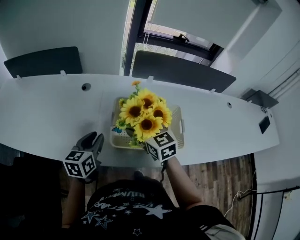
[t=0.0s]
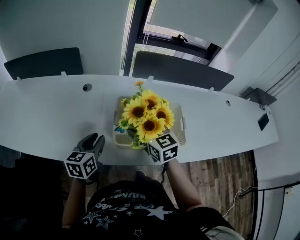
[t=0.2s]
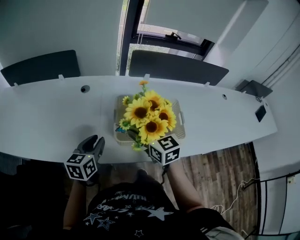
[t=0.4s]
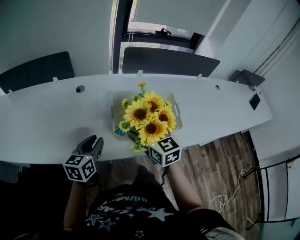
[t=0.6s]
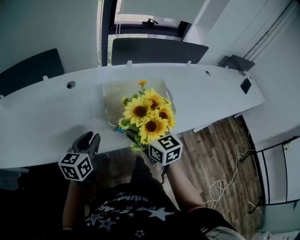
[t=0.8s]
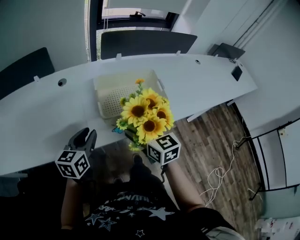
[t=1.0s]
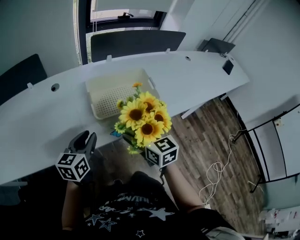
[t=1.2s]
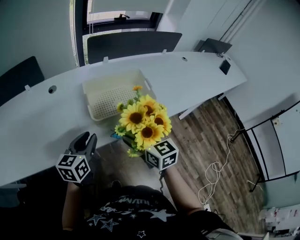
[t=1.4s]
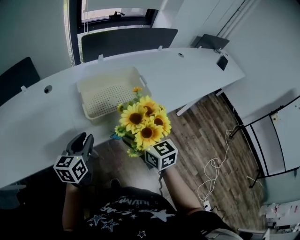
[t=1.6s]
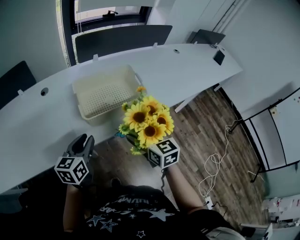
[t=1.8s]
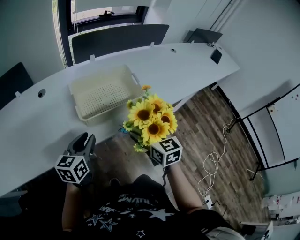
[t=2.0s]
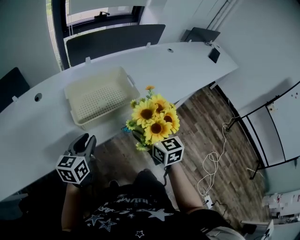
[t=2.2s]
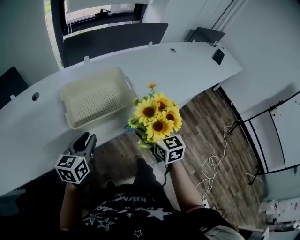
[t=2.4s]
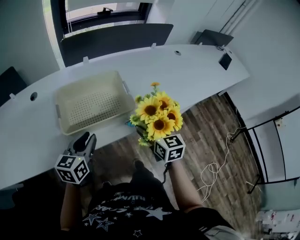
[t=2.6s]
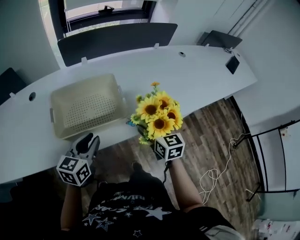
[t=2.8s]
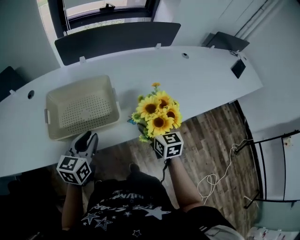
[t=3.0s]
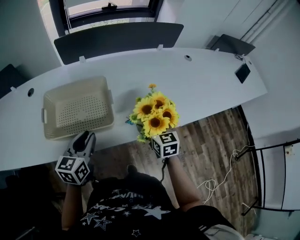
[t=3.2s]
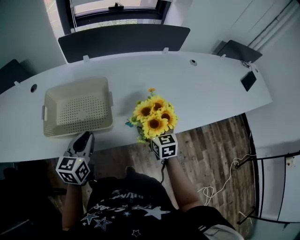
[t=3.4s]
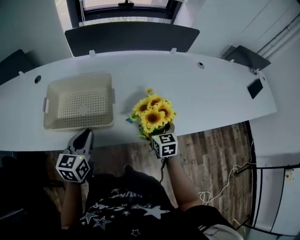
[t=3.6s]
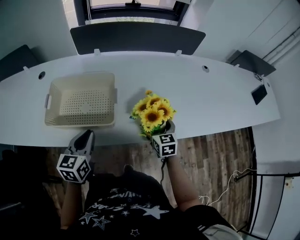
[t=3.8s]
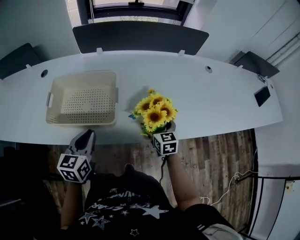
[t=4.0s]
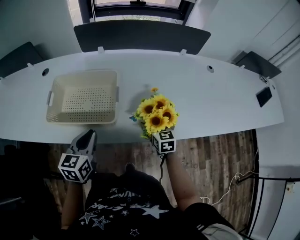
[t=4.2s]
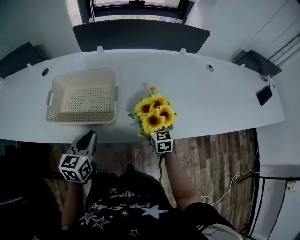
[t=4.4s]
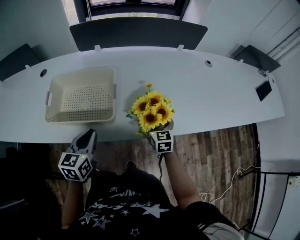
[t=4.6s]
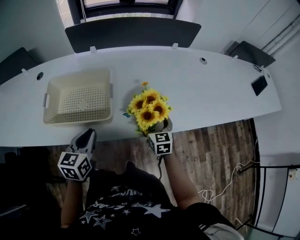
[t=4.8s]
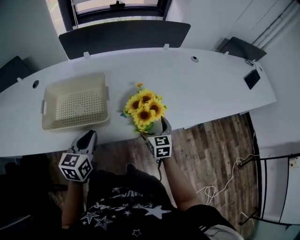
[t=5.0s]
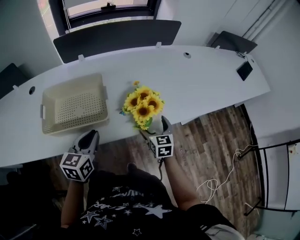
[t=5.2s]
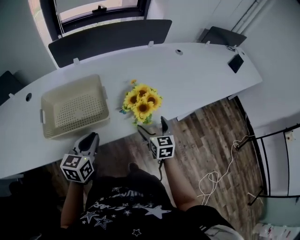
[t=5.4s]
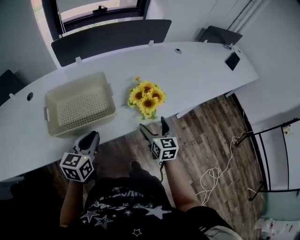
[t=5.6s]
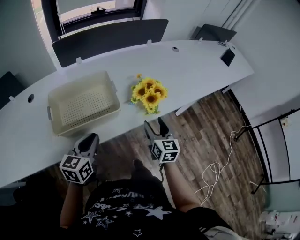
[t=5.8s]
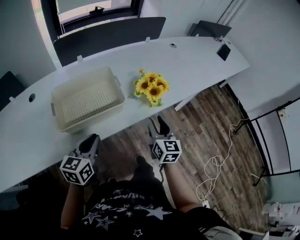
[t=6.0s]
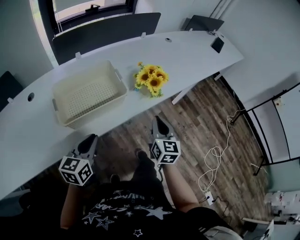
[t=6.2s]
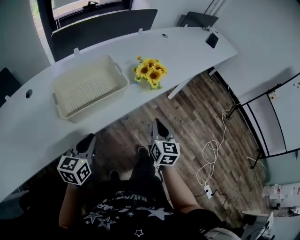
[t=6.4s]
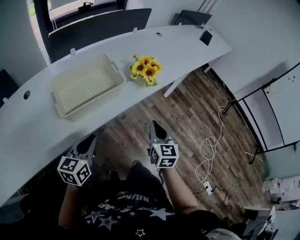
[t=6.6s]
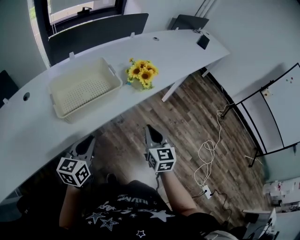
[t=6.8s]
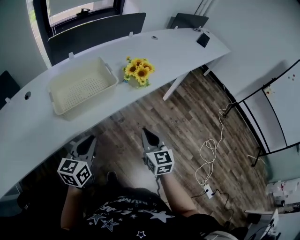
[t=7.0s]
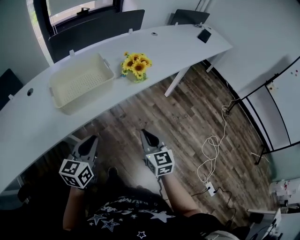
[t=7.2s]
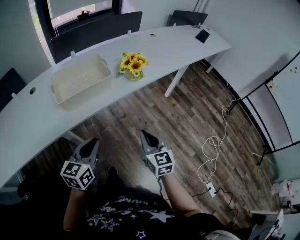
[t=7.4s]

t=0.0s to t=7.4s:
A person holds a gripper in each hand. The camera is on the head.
t=0.0s to t=1.4s: The left gripper goes some 15 cm backward and to the right, and swivels some 20 degrees. Meanwhile the right gripper goes some 20 cm backward, and swivels approximately 30 degrees.
t=1.4s to t=3.0s: The left gripper goes approximately 20 cm to the right and forward. The right gripper goes some 35 cm to the right, forward and downward.
t=3.0s to t=4.4s: The right gripper shifts some 10 cm downward and forward.
t=4.4s to t=6.0s: The left gripper changes place by some 10 cm, and changes its angle by roughly 30 degrees; the right gripper moves some 20 cm, swivels roughly 40 degrees, and closes.
t=6.0s to t=7.4s: The right gripper goes some 25 cm backward. Meanwhile the left gripper is displaced backward and to the right by about 20 cm.

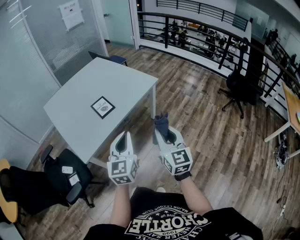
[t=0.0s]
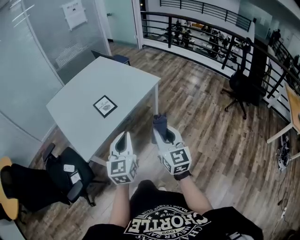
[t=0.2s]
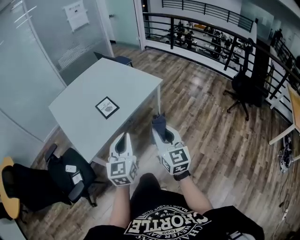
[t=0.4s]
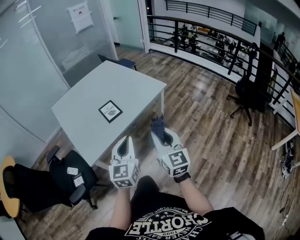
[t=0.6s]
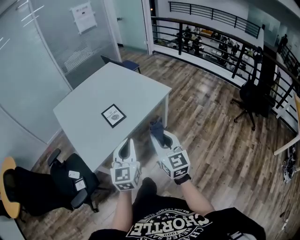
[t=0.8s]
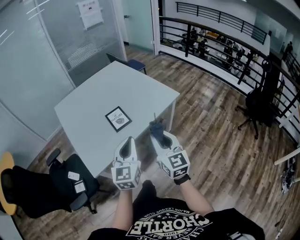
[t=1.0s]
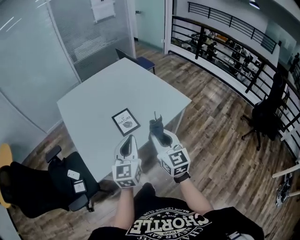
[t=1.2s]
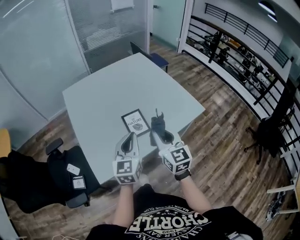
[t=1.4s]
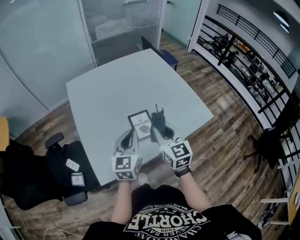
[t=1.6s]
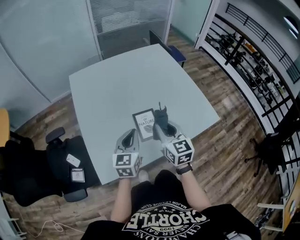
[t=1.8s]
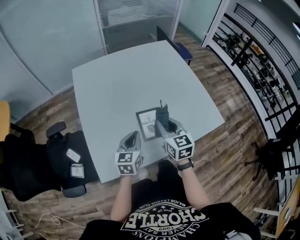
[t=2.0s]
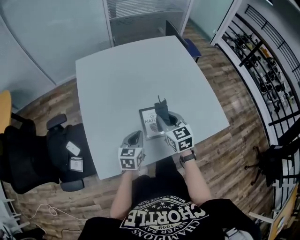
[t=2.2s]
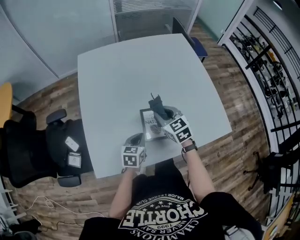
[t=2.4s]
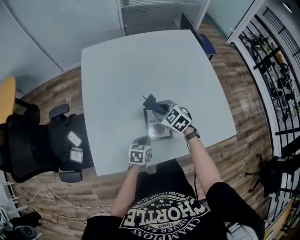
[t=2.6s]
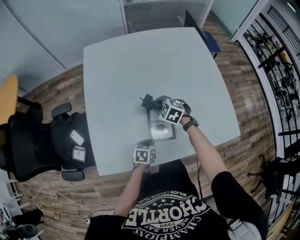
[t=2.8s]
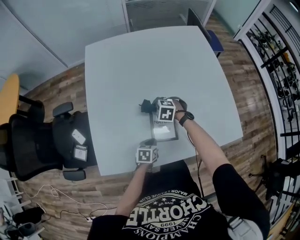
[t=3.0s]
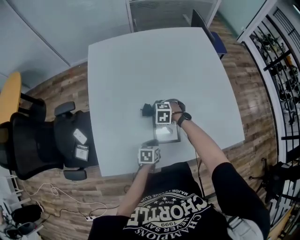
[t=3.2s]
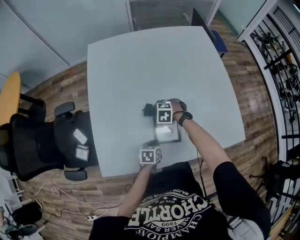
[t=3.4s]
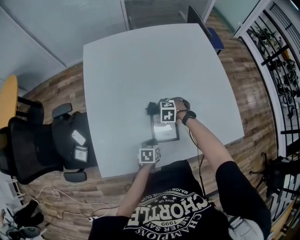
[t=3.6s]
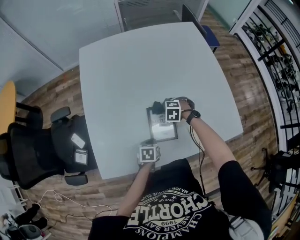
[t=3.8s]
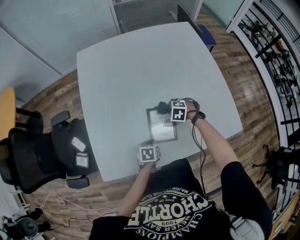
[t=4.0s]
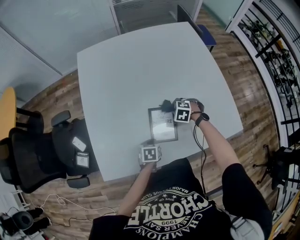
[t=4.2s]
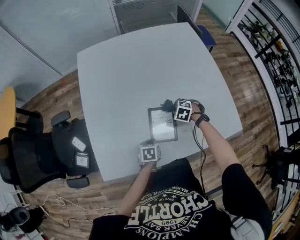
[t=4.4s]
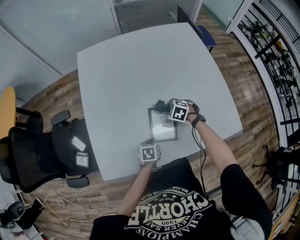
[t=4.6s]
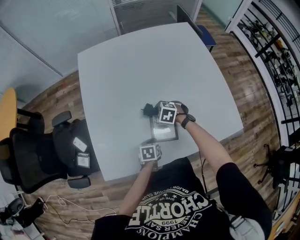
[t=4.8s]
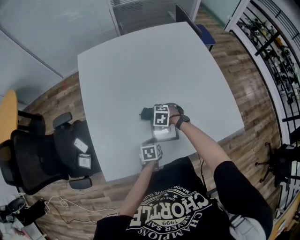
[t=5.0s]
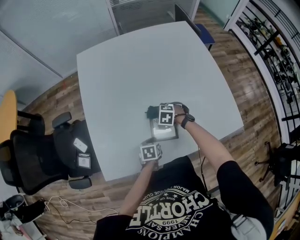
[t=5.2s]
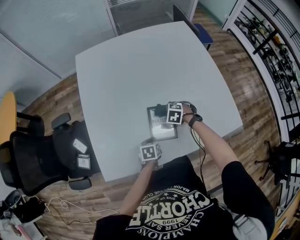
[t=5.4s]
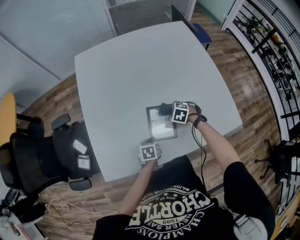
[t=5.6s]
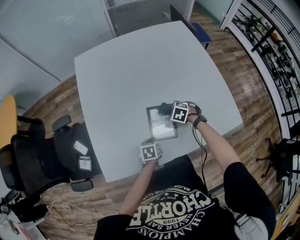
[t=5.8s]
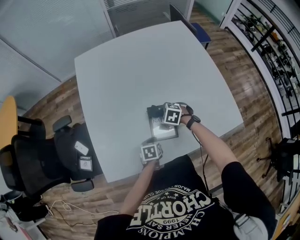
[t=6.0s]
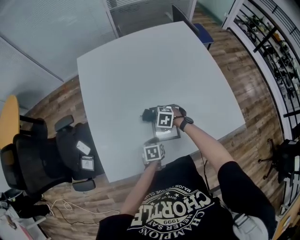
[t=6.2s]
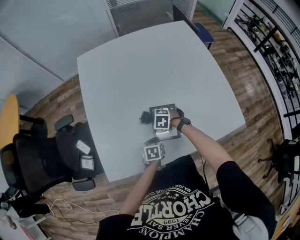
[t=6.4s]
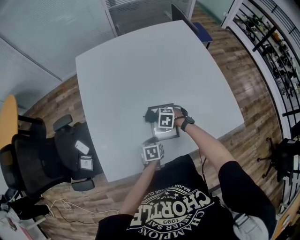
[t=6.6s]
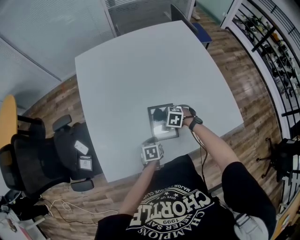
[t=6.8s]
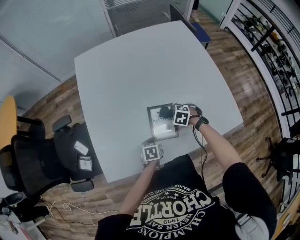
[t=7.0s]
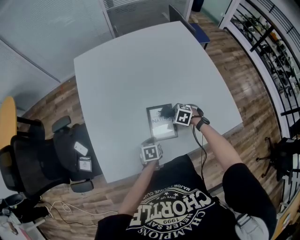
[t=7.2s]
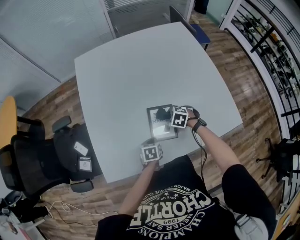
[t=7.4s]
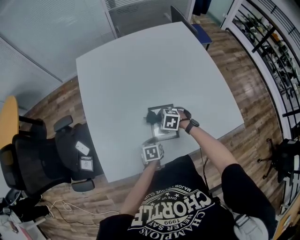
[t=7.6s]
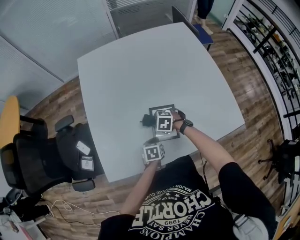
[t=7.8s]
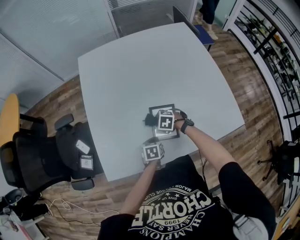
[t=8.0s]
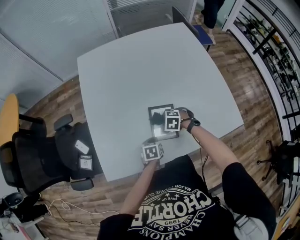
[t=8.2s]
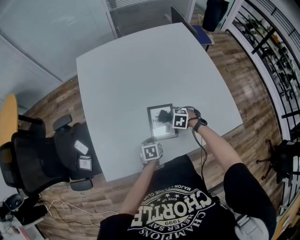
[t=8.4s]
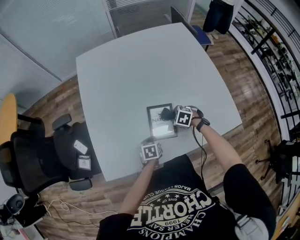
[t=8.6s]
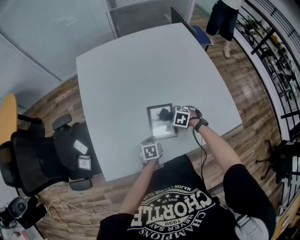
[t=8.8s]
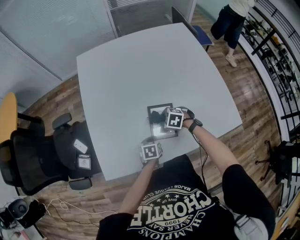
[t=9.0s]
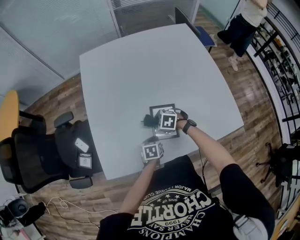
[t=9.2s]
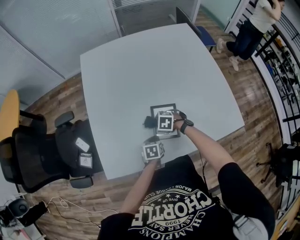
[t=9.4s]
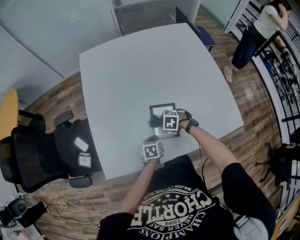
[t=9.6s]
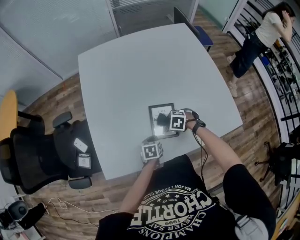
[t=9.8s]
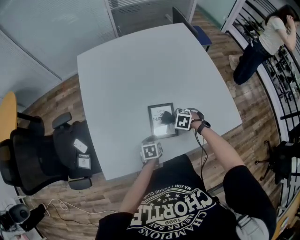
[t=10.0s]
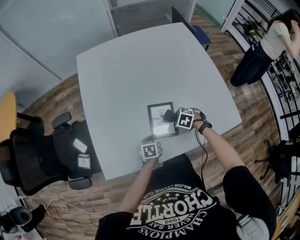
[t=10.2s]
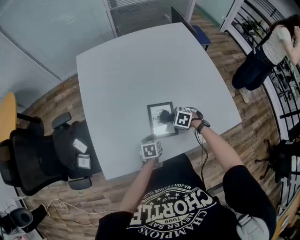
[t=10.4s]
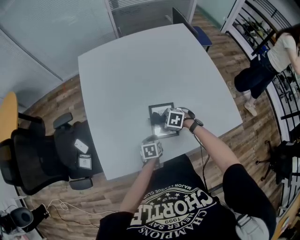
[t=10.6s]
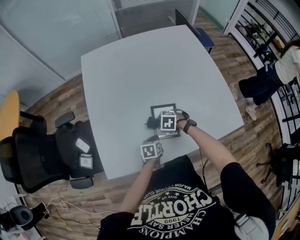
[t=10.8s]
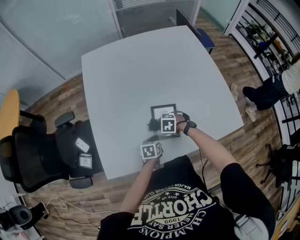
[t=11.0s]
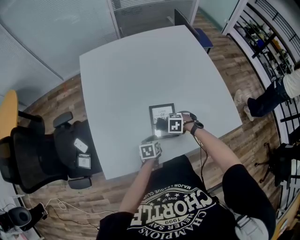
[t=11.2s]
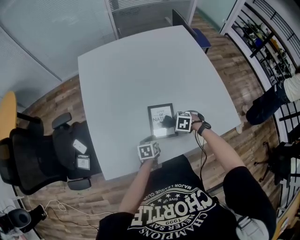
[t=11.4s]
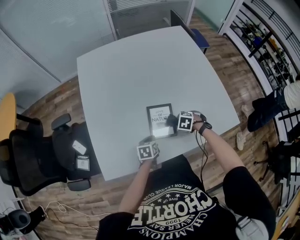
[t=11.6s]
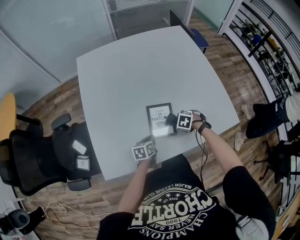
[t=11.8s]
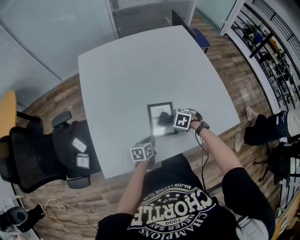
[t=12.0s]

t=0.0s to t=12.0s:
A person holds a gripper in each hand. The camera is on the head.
t=0.0s to t=1.6s: Both grippers are carried forward and to the left, approximately 50 cm. The right gripper turns by about 30 degrees. Meanwhile the left gripper changes its angle by roughly 20 degrees.
t=1.6s to t=3.0s: The left gripper moves downward, about 35 cm, and angles its fingers downward, by approximately 40 degrees. The right gripper is displaced downward and forward by approximately 40 cm, and points its fingers about 50 degrees further downward.
t=3.0s to t=4.4s: The right gripper moves approximately 15 cm.
t=6.0s to t=7.6s: The right gripper swings left and right, about 15 cm each way, with 2 reversals.
t=7.6s to t=9.0s: The right gripper reaches some 10 cm to the right, then returns.
t=9.0s to t=10.4s: The right gripper moves roughly 5 cm.

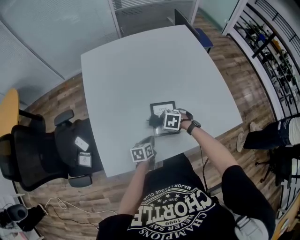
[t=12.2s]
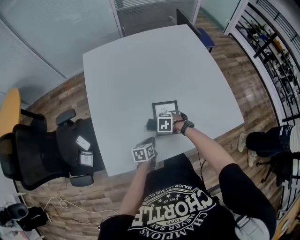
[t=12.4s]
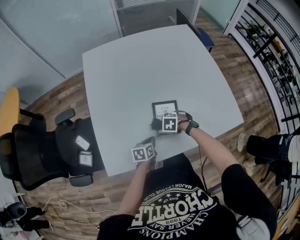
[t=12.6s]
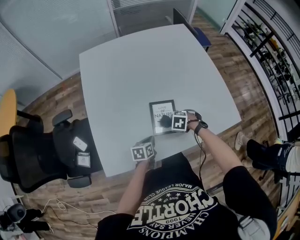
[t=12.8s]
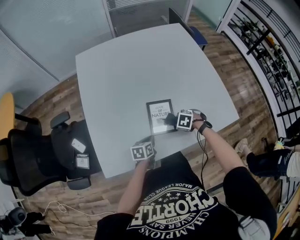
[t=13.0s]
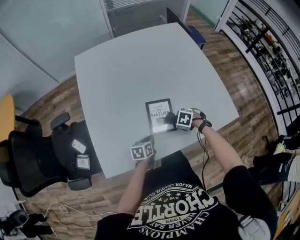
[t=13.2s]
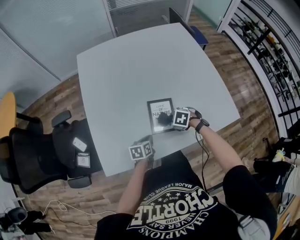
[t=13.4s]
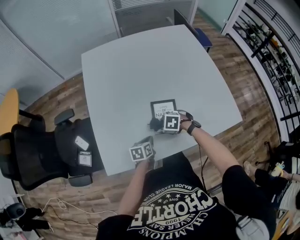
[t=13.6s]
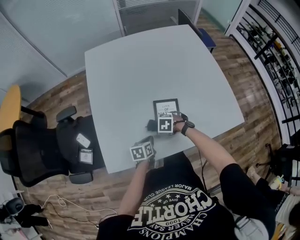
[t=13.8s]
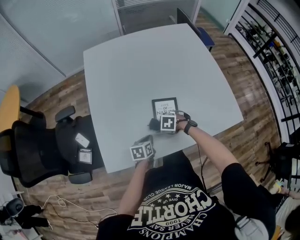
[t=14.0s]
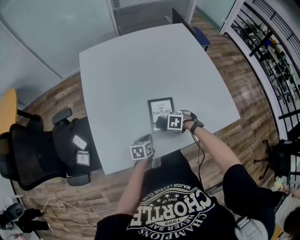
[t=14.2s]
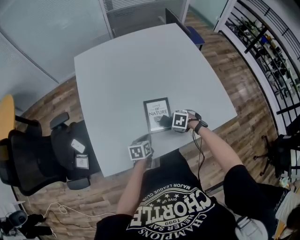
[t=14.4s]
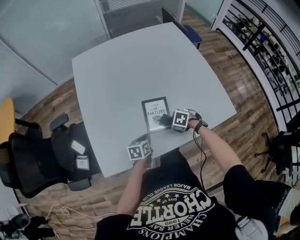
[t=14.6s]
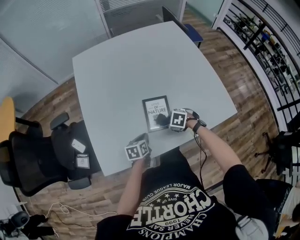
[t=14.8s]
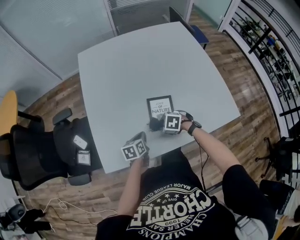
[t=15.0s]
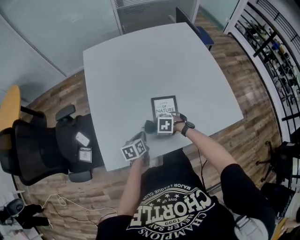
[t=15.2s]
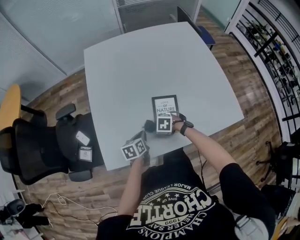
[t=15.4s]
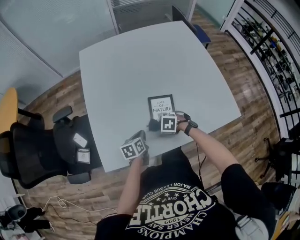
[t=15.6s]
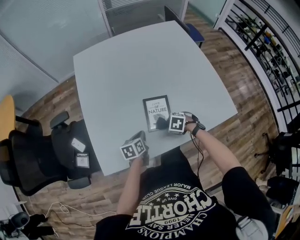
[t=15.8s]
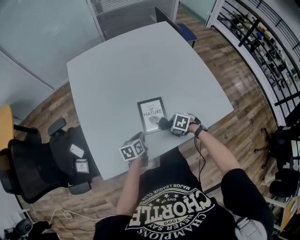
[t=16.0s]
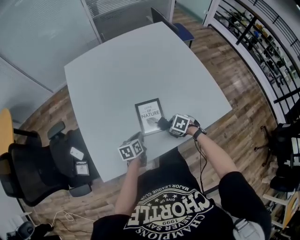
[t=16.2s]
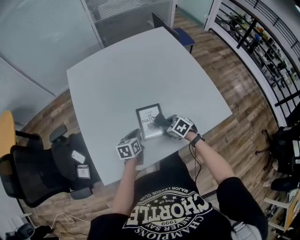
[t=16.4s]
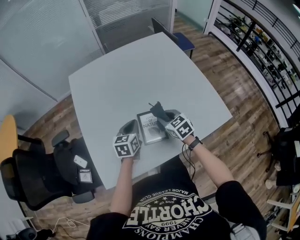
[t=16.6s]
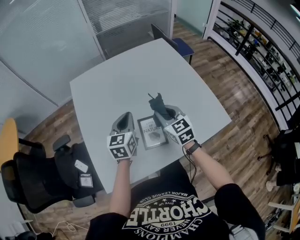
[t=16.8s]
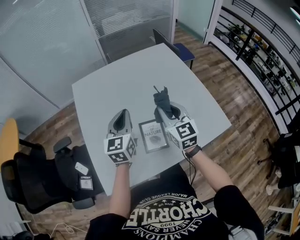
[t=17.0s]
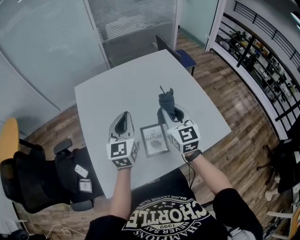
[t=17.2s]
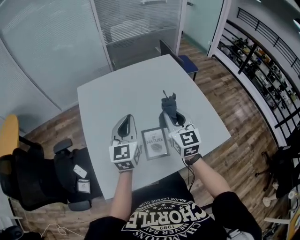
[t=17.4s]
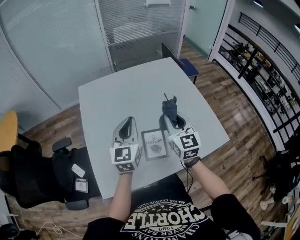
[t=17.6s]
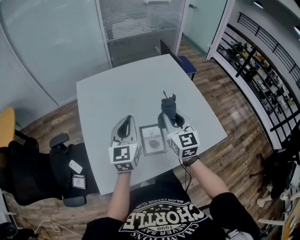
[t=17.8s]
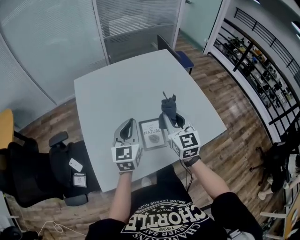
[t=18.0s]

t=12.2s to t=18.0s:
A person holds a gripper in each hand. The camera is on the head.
t=15.0s to t=16.6s: The grippers both shift upward by roughly 15 cm. The right gripper tilts its fingers roughly 30 degrees upward; the left gripper rotates about 30 degrees.
t=16.6s to t=18.0s: Both grippers move upward, some 20 cm. The right gripper tips its fingers upward by approximately 30 degrees; the left gripper swivels roughly 30 degrees.
